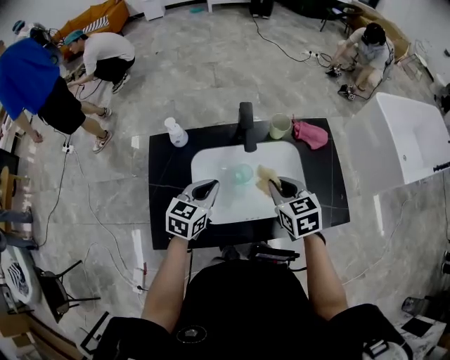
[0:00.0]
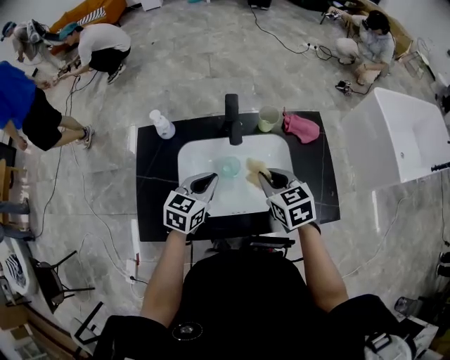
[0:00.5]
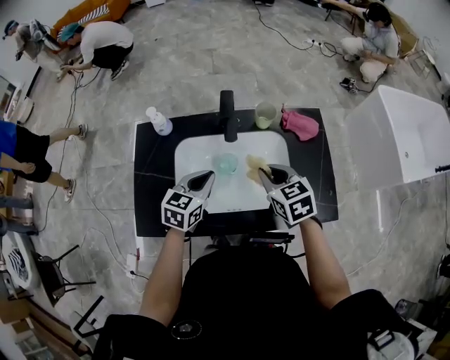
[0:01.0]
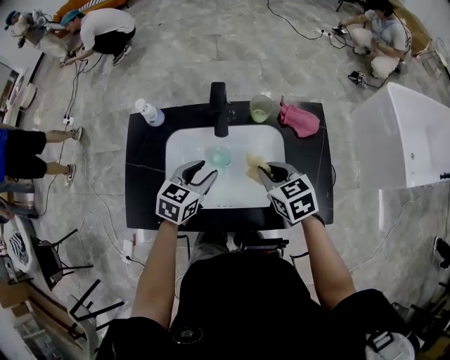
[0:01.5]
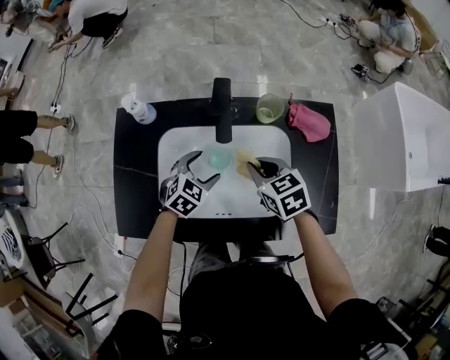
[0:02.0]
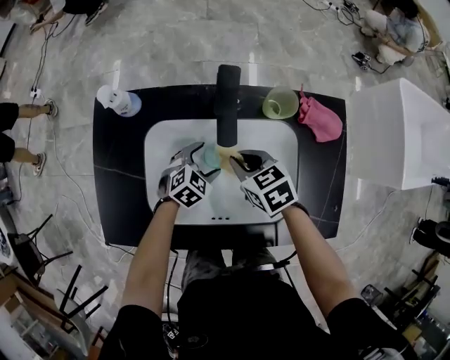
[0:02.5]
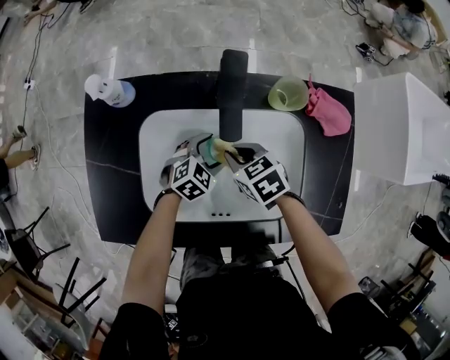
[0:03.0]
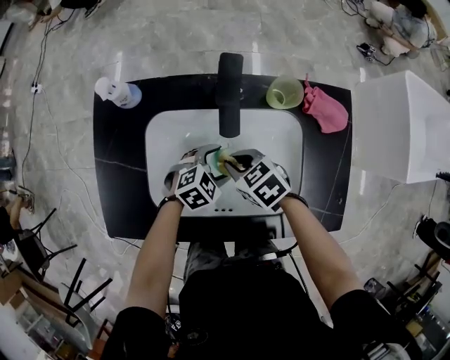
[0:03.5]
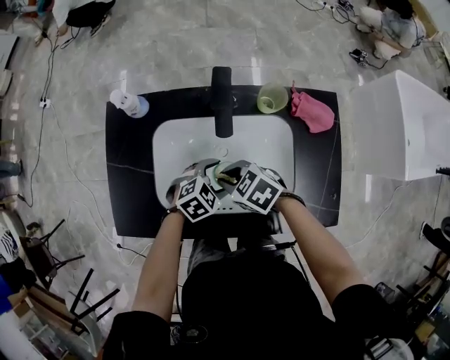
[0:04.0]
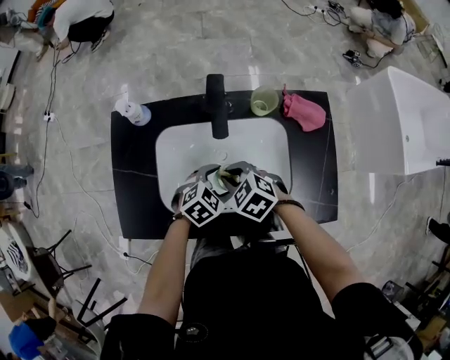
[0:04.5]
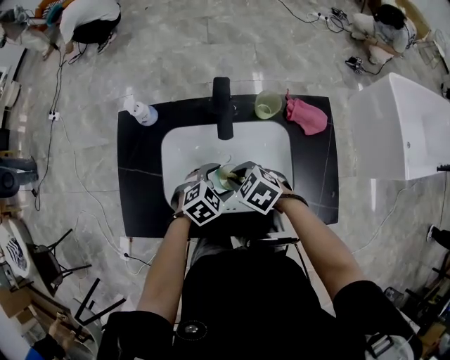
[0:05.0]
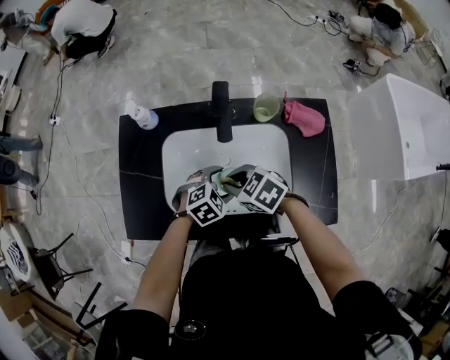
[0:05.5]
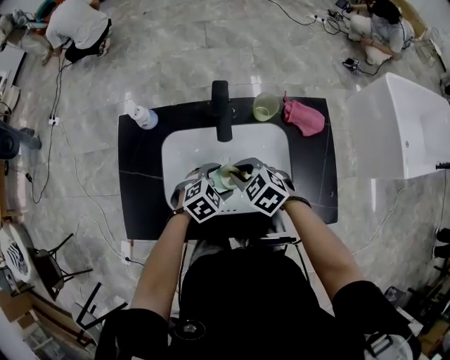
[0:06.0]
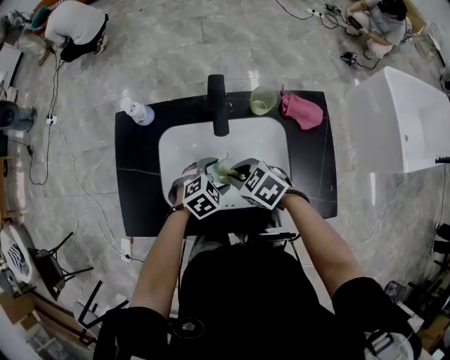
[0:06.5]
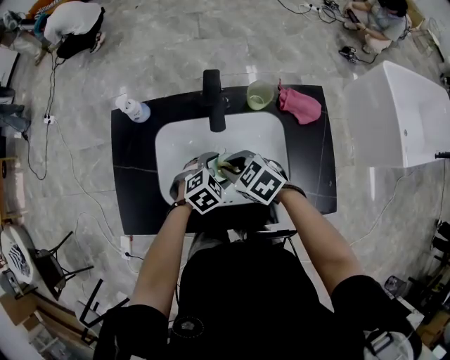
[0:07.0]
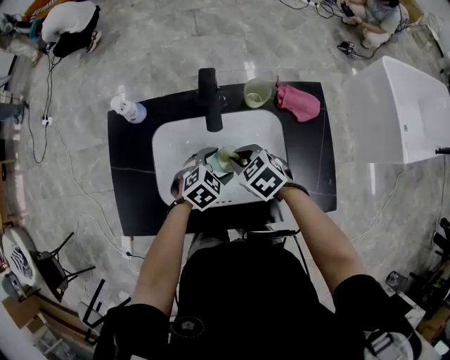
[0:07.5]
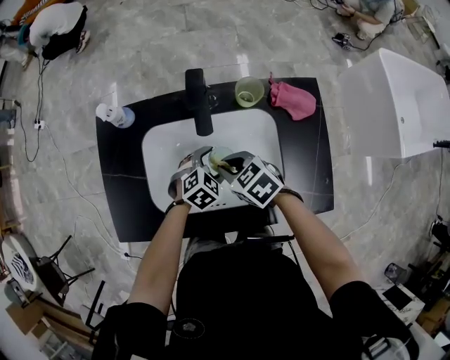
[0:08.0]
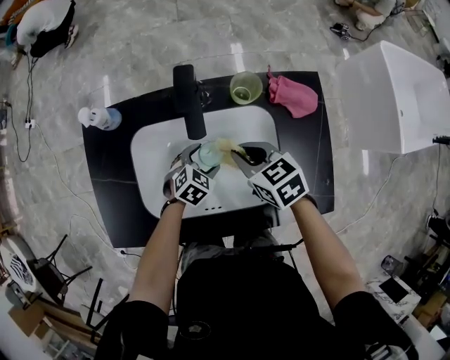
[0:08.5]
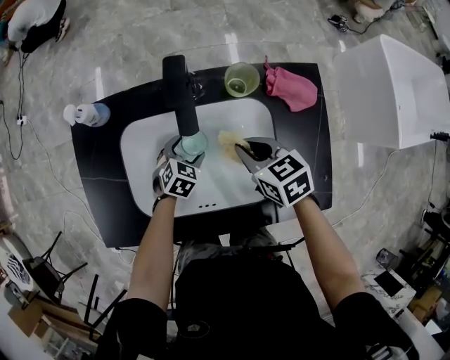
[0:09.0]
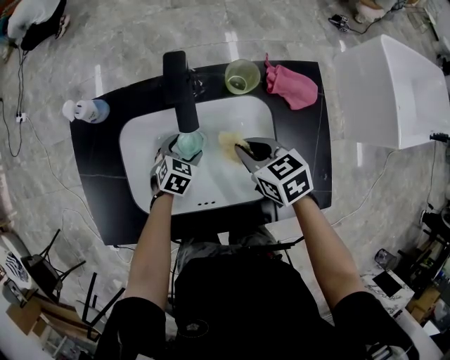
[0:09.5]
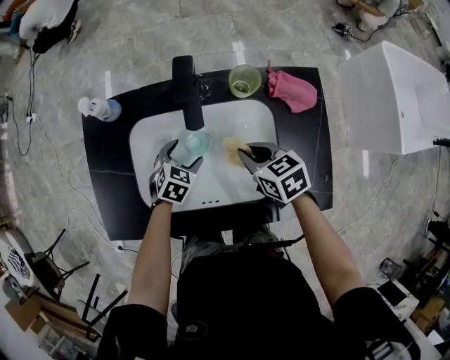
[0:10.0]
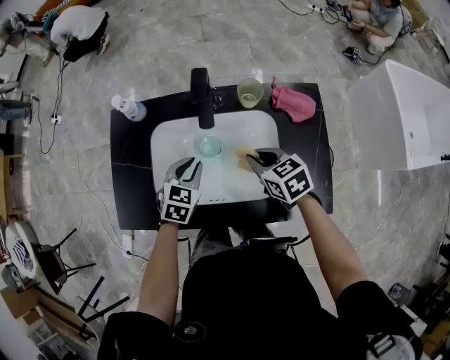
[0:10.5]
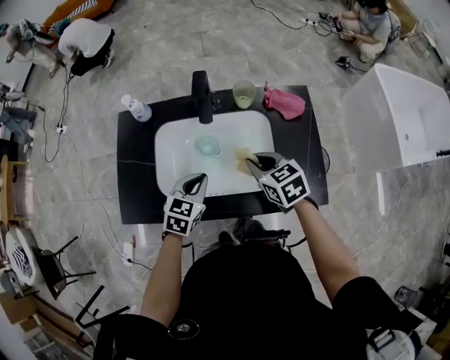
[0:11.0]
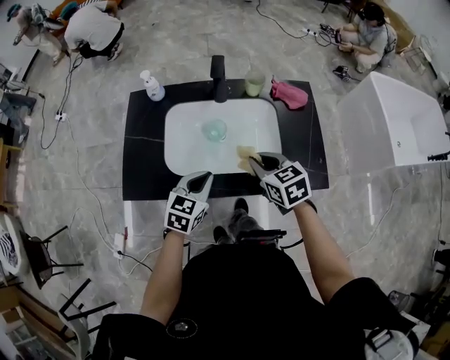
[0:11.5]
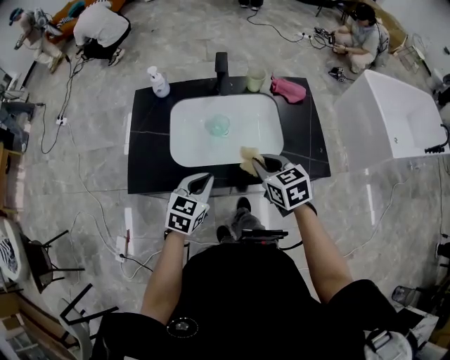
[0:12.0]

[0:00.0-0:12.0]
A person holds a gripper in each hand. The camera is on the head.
0:00.0 to 0:02.0: The left gripper moves downward and to the right, roughly 15 cm, turns by approximately 30 degrees, and opens. The right gripper heads downward and forward, covering roughly 10 cm.
0:02.0 to 0:04.0: The right gripper ends up some 10 cm from where it was, and rotates approximately 30 degrees, while the left gripper reaches about 10 cm downward, then returns.
0:04.0 to 0:06.0: The grippers stay close to where they were, moving slightly.
0:06.0 to 0:08.0: The left gripper moves roughly 5 cm.
0:08.0 to 0:10.0: The left gripper heads to the left, covering some 5 cm, and rotates some 20 degrees; the right gripper goes approximately 10 cm to the right.
0:10.0 to 0:12.0: The grippers both shift backward and upward by roughly 25 cm. The left gripper changes its angle by approximately 30 degrees, and closes up.

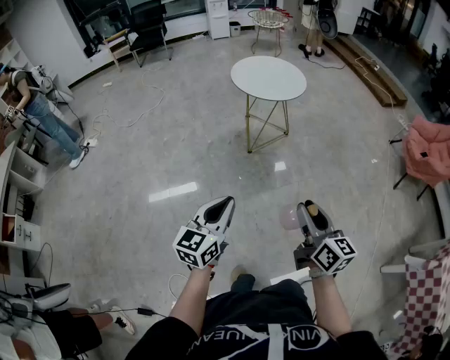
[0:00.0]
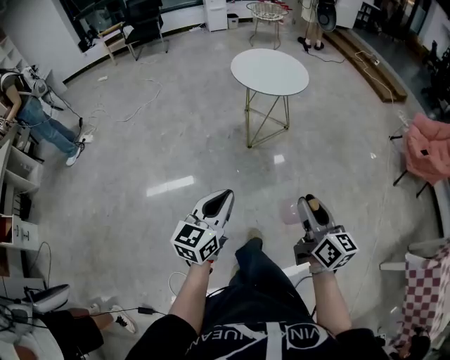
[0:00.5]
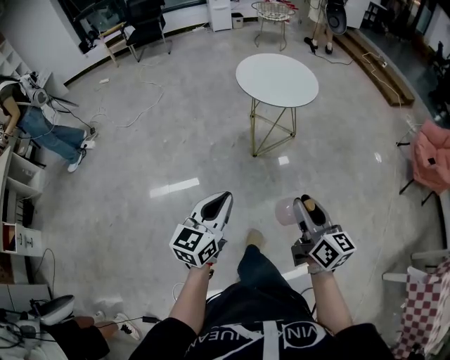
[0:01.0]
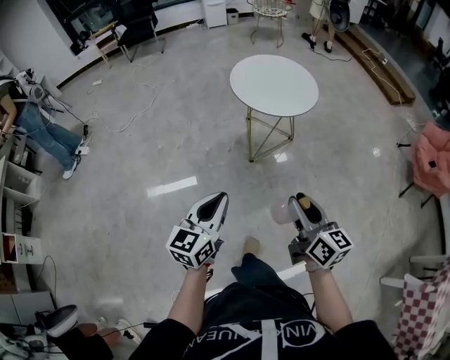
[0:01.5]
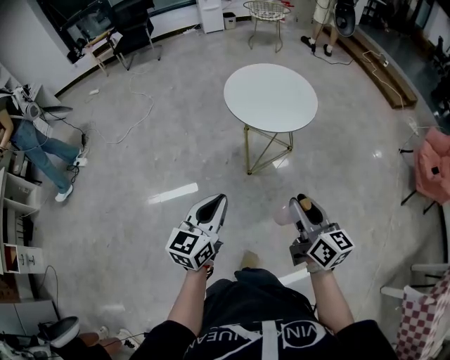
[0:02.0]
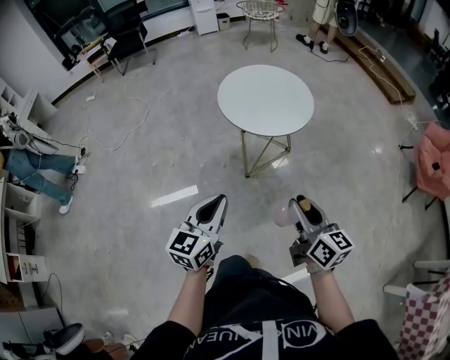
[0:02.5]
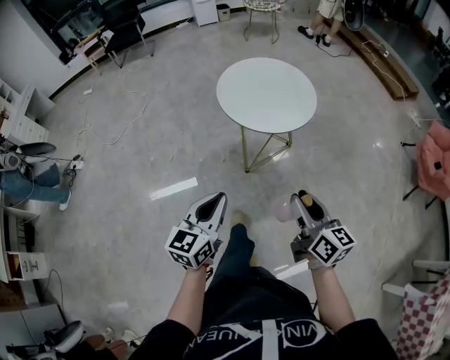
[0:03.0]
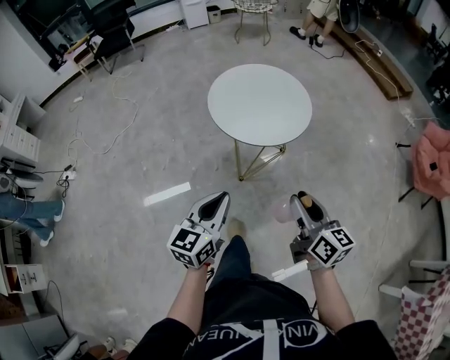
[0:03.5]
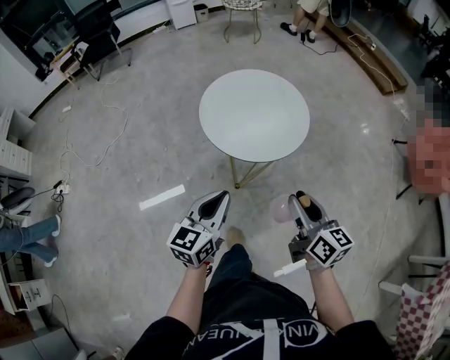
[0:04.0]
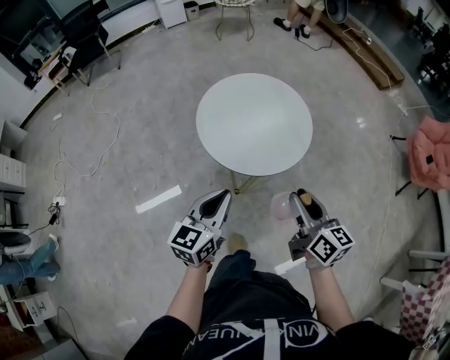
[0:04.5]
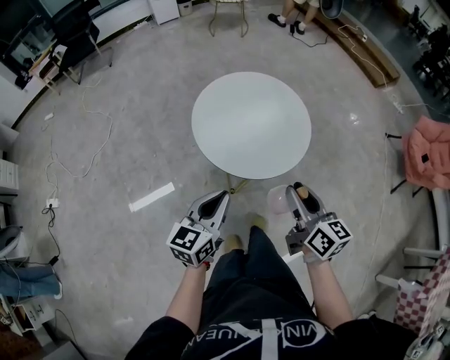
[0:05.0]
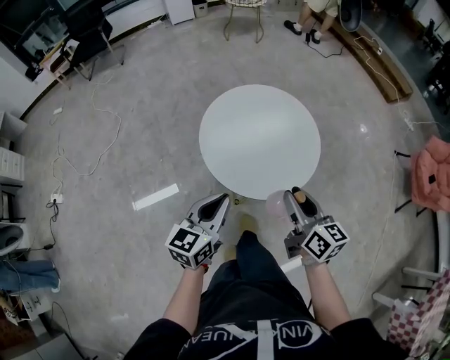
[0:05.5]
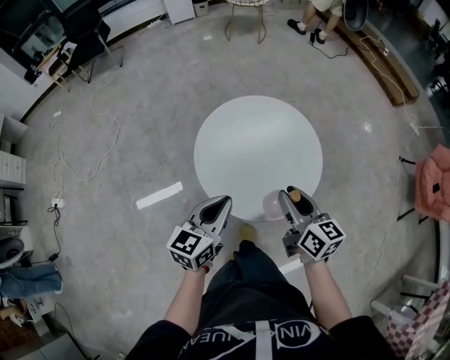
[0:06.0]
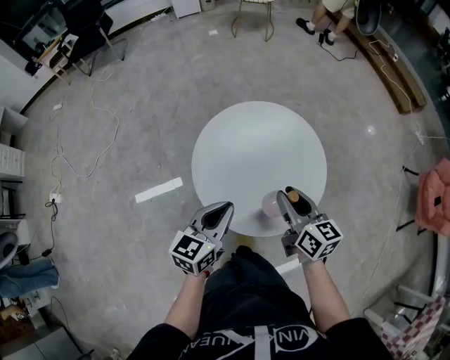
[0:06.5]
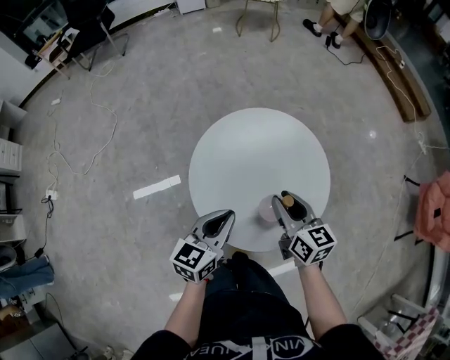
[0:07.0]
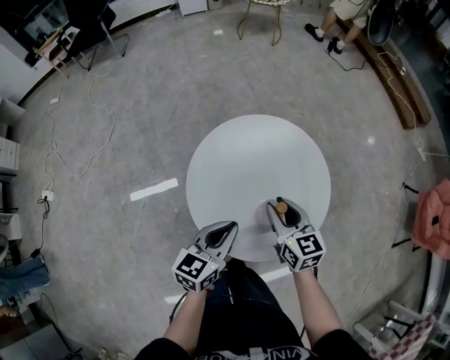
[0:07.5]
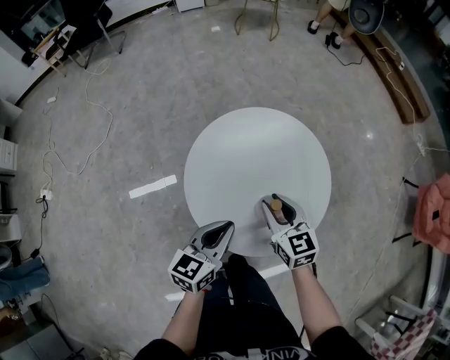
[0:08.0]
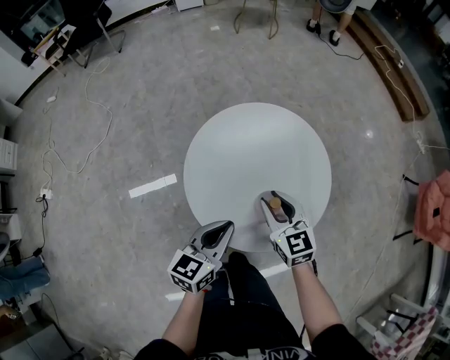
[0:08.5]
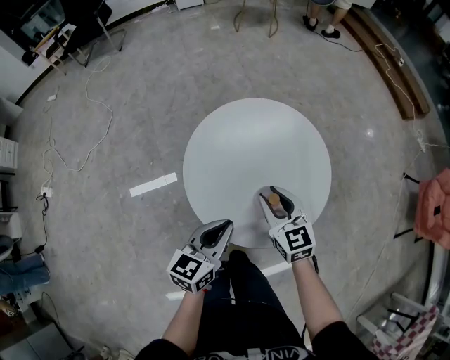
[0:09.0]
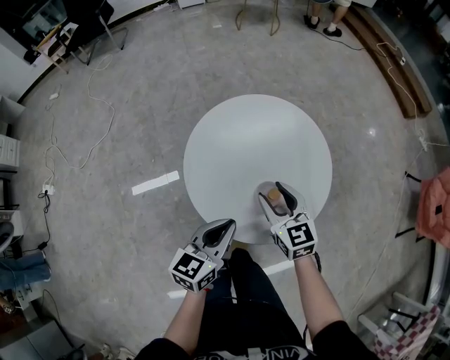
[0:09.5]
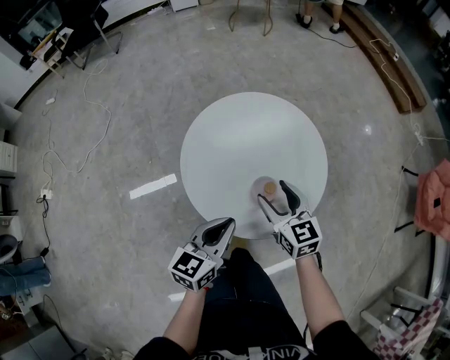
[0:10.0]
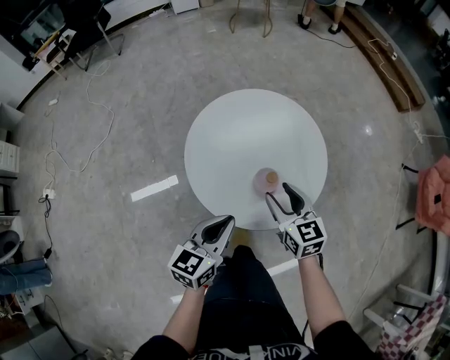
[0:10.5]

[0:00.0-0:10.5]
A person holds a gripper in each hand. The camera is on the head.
0:00.0 to 0:02.0: The two grippers go approximately 30 cm forward.
0:02.0 to 0:04.0: The grippers both shift forward by about 20 cm.
0:04.0 to 0:06.5: The grippers both shift forward by some 30 cm.
0:06.5 to 0:08.5: Both grippers move downward, approximately 5 cm. The right gripper changes its angle by about 30 degrees.
0:08.5 to 0:10.5: The right gripper ends up approximately 5 cm from where it was, and opens its fingers; the left gripper travels backward by about 5 cm.

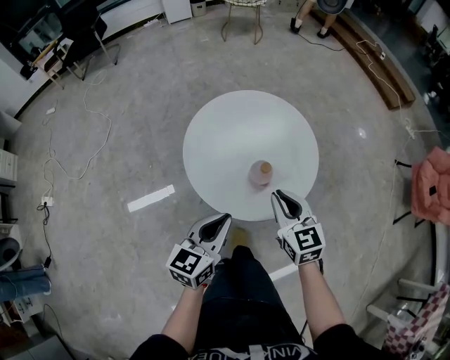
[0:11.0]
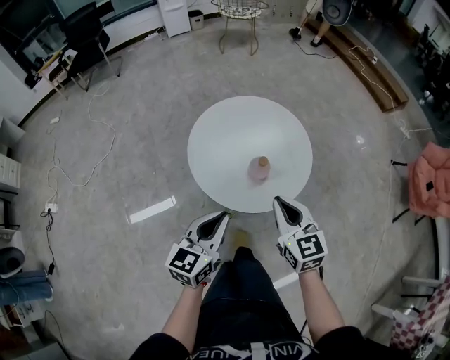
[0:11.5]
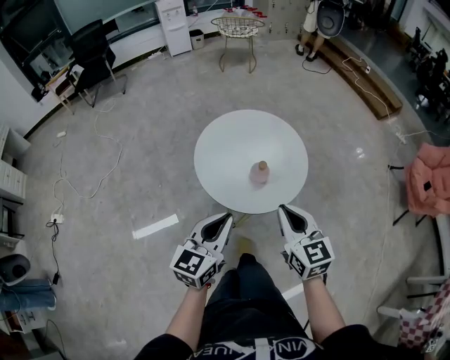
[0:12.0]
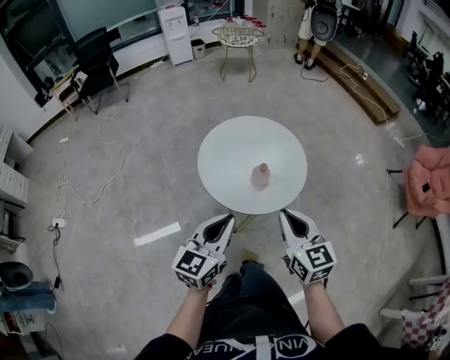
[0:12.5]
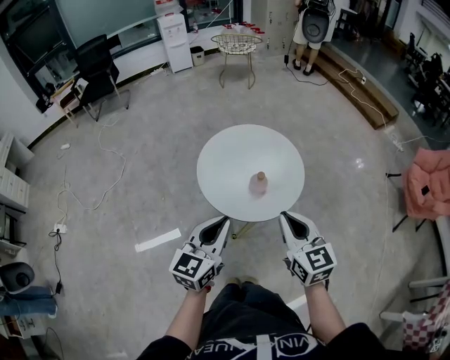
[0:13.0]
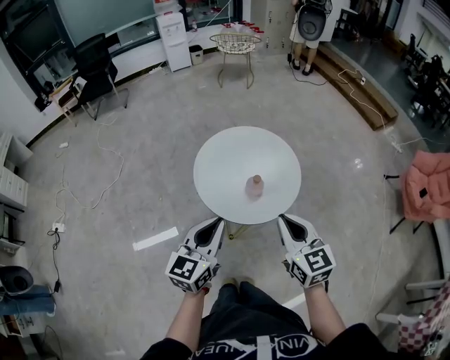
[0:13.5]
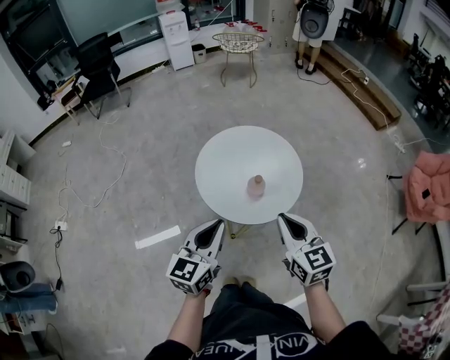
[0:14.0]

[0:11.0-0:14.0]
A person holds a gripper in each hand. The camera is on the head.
0:11.0 to 0:12.5: The left gripper moves upward and backward, some 15 cm, while the right gripper goes some 20 cm backward and upward.
0:12.5 to 0:14.0: The grippers stay close to where they were, moving slightly.

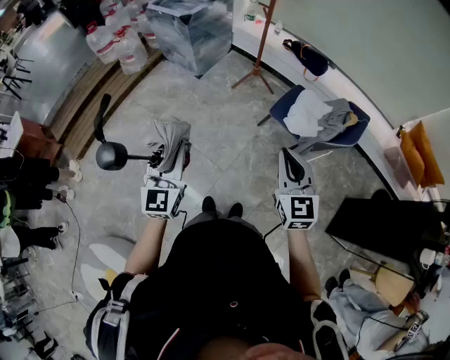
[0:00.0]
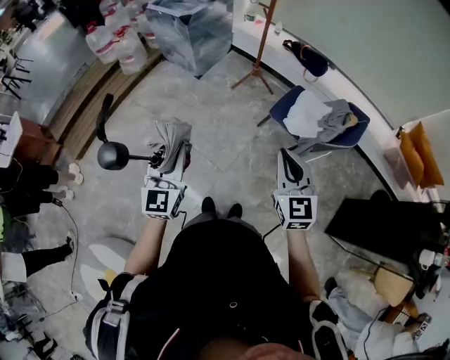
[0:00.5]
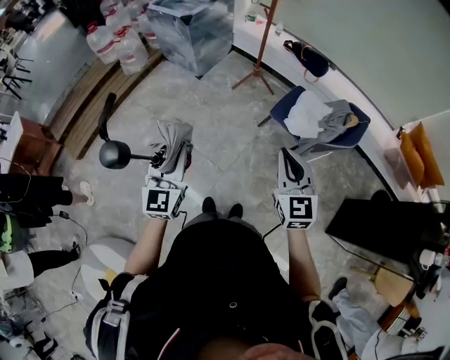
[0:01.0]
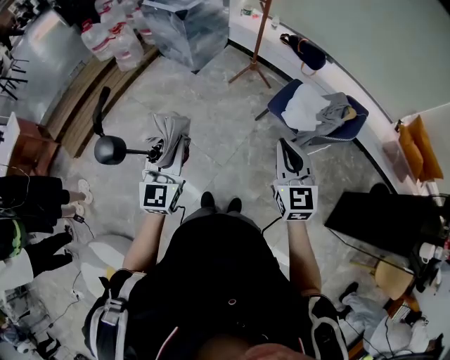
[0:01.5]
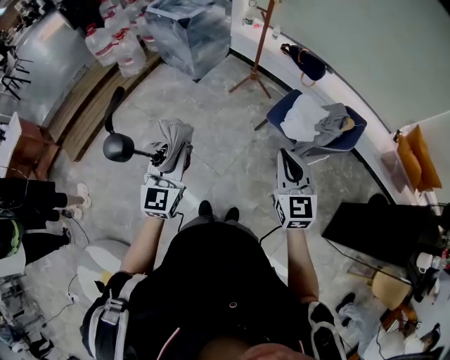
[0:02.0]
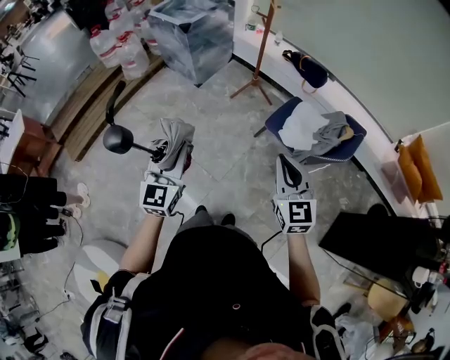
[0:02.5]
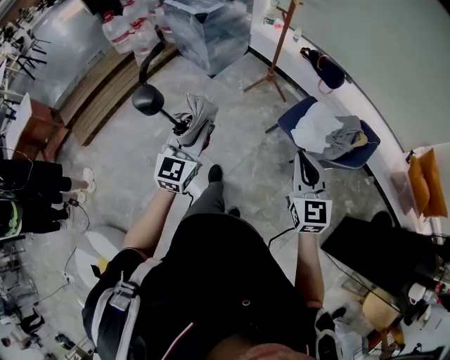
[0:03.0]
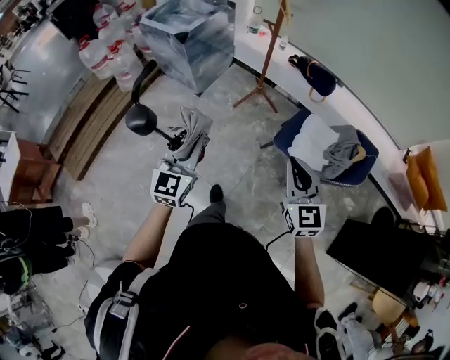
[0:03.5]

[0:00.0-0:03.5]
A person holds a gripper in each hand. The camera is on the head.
0:00.0 to 0:02.0: The grippers make only small movements.
0:02.0 to 0:03.5: The grippers both shift forward by some 20 cm.
